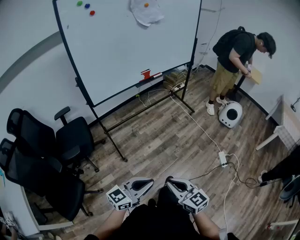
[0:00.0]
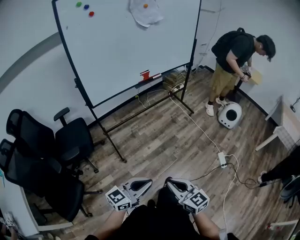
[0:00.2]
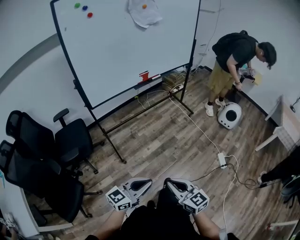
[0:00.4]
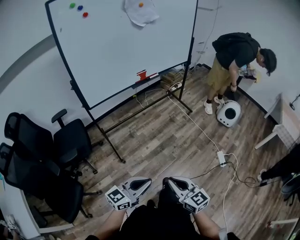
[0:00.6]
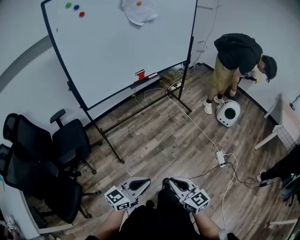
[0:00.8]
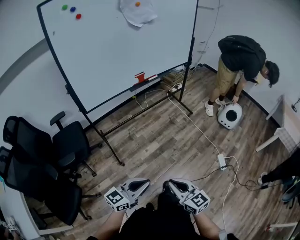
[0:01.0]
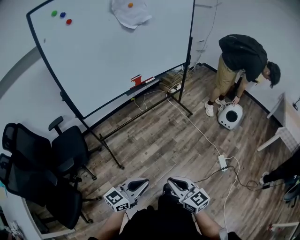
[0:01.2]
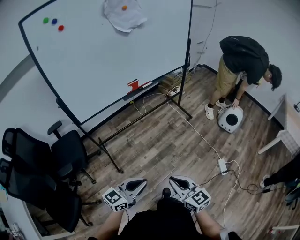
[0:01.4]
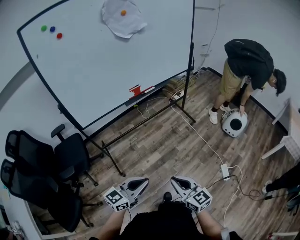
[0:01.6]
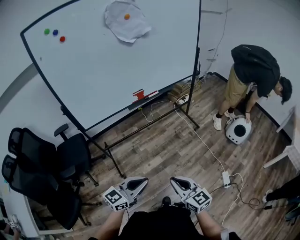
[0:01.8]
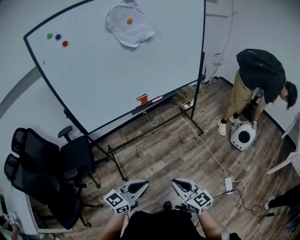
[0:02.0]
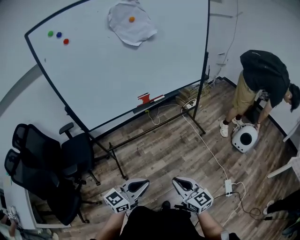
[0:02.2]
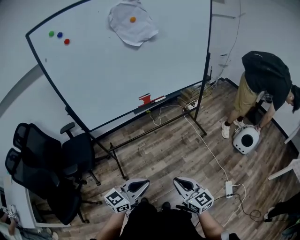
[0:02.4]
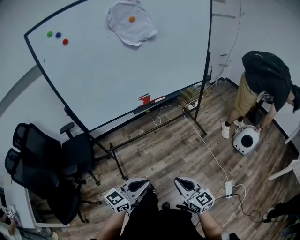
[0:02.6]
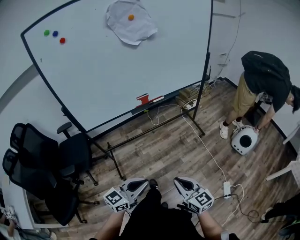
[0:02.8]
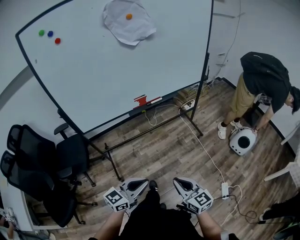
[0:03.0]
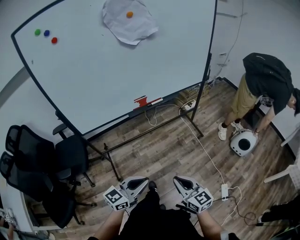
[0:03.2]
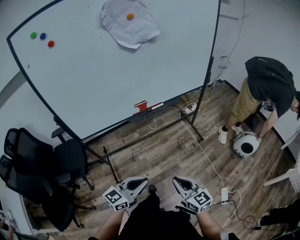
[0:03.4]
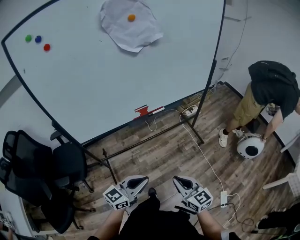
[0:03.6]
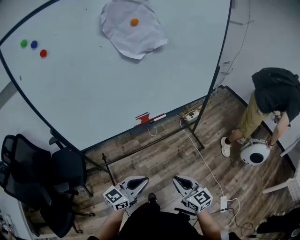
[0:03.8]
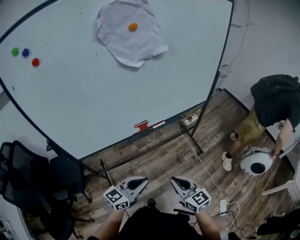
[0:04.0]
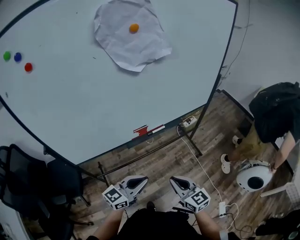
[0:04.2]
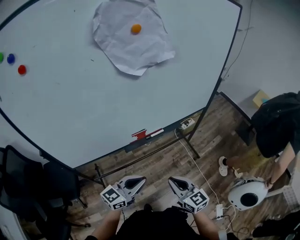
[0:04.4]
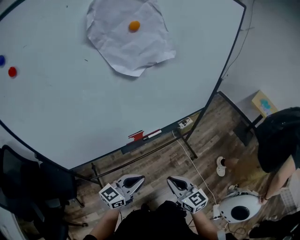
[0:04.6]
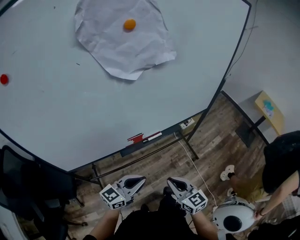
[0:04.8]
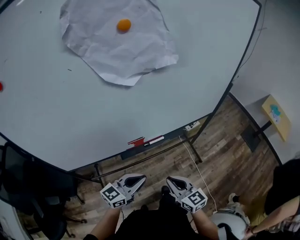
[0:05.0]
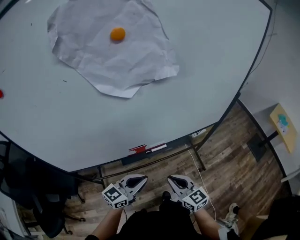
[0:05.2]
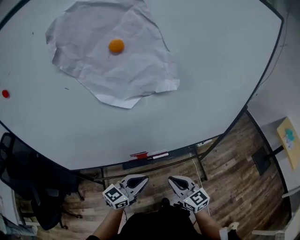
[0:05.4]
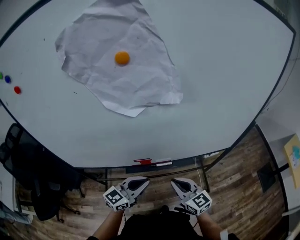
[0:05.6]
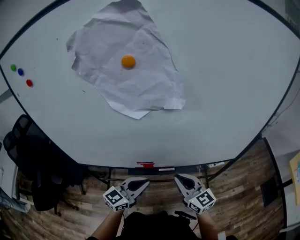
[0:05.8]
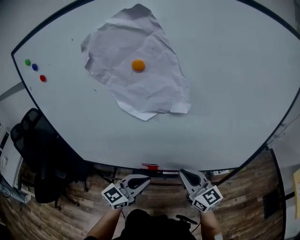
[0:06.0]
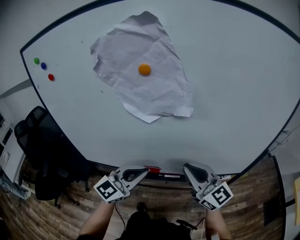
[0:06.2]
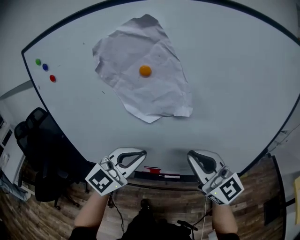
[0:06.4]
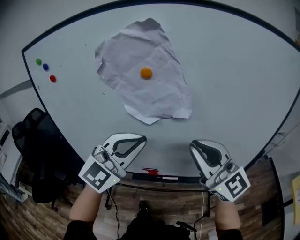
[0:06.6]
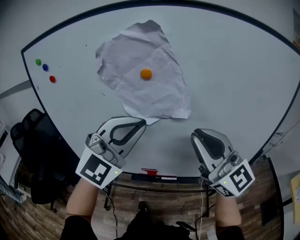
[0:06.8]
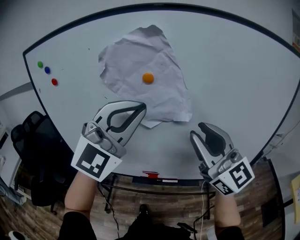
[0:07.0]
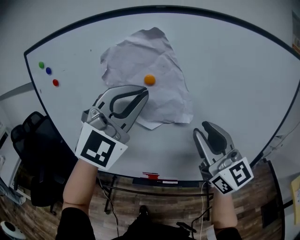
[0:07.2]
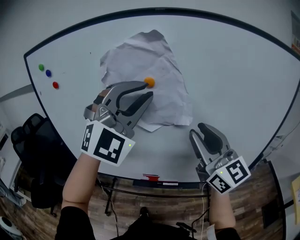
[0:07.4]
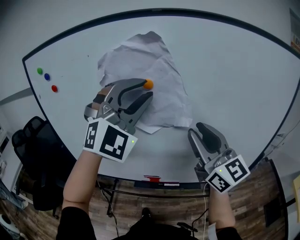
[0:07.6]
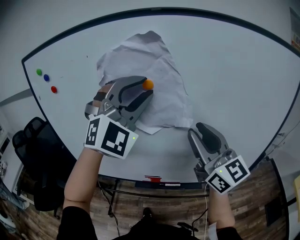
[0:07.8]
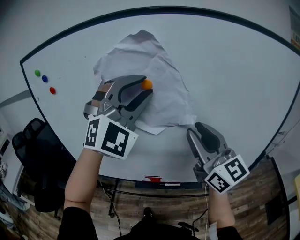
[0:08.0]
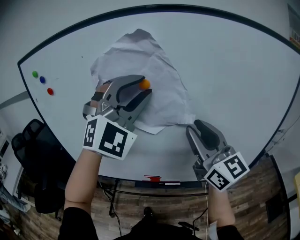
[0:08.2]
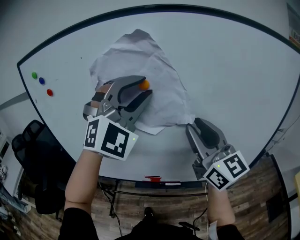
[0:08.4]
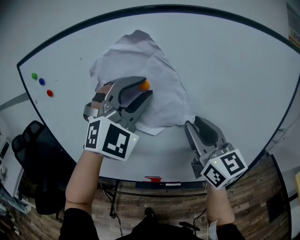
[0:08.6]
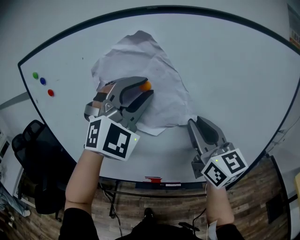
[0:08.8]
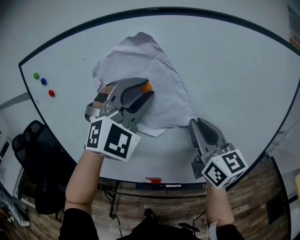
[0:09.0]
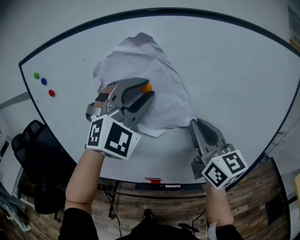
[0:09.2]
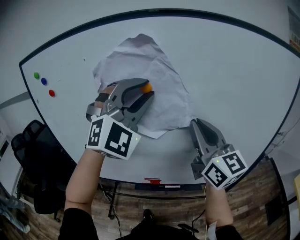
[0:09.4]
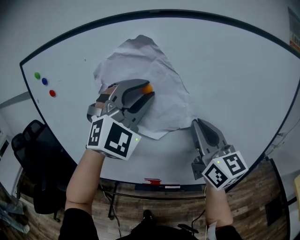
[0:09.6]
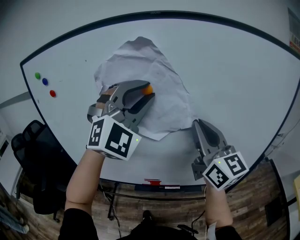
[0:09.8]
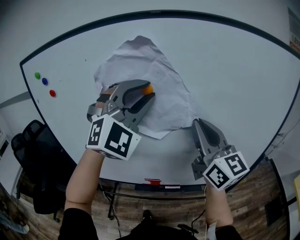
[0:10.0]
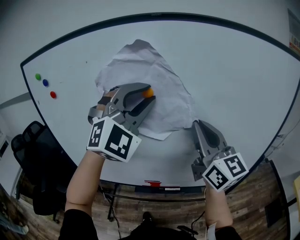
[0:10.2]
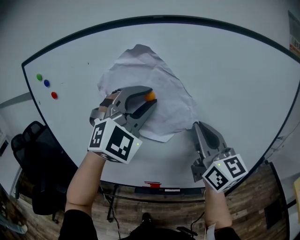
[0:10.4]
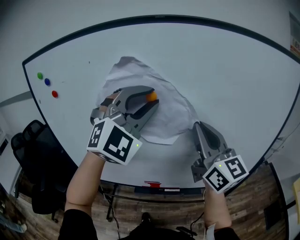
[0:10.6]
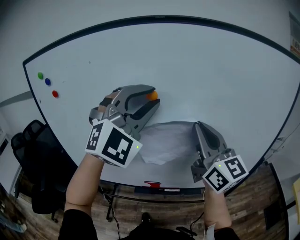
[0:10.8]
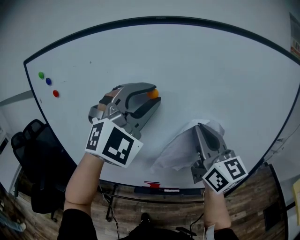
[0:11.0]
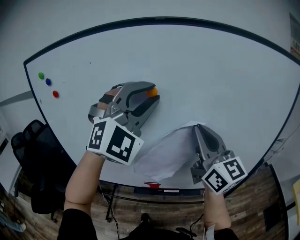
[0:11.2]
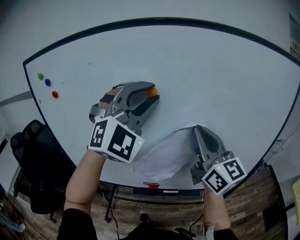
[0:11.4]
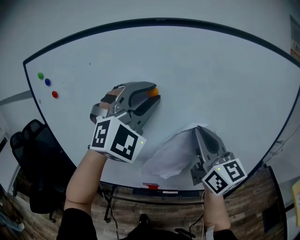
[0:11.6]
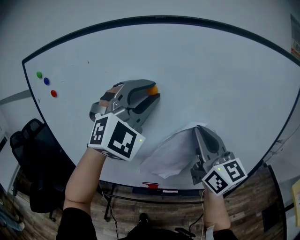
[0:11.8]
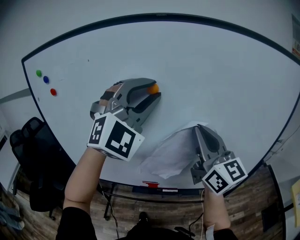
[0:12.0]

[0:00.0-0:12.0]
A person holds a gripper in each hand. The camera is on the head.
0:00.0 to 0:01.6: The right gripper shifts approximately 25 cm forward and to the right. Meanwhile the left gripper heads forward, covering about 20 cm.
0:01.6 to 0:03.0: Both grippers move forward, roughly 10 cm.
0:03.0 to 0:04.4: The grippers both shift forward by some 30 cm.
0:04.4 to 0:06.0: The left gripper ends up roughly 20 cm from where it was, and turns by some 30 degrees. Meanwhile the right gripper shifts by about 30 cm, and turns by roughly 30 degrees.
0:06.0 to 0:07.6: Both grippers move upward, some 35 cm. The left gripper twists some 70 degrees clockwise, seen from behind, and opens up. Meanwhile the right gripper opens.
0:07.6 to 0:12.0: The grippers move only a little.

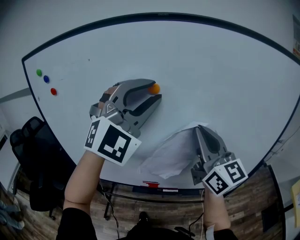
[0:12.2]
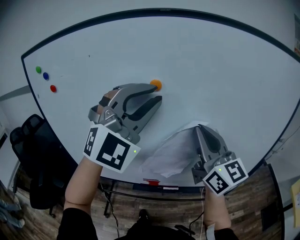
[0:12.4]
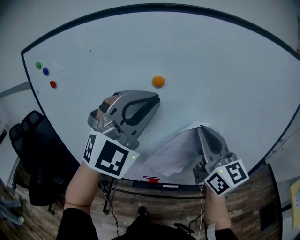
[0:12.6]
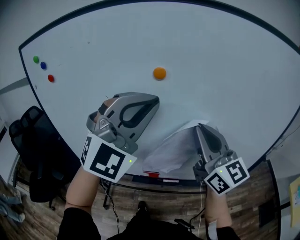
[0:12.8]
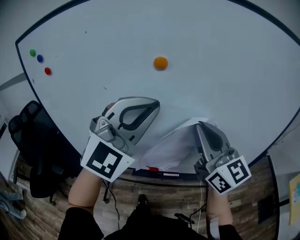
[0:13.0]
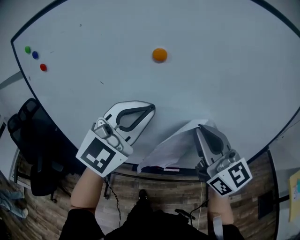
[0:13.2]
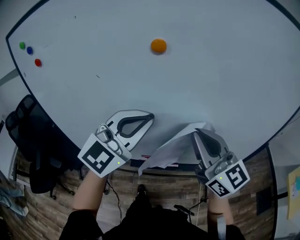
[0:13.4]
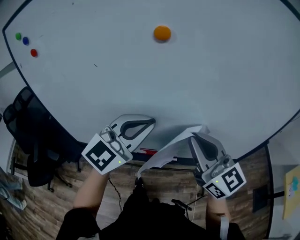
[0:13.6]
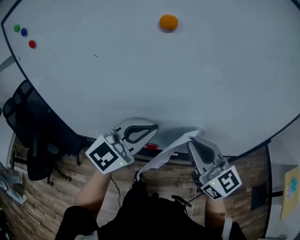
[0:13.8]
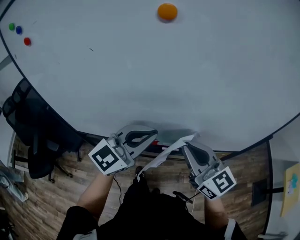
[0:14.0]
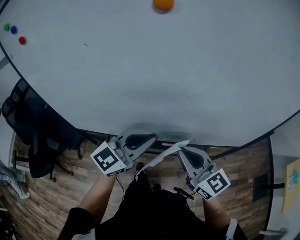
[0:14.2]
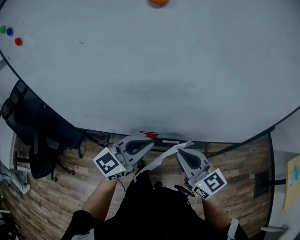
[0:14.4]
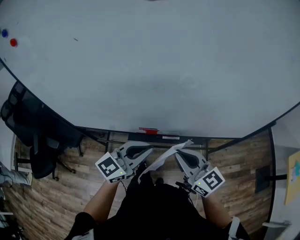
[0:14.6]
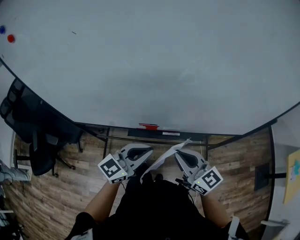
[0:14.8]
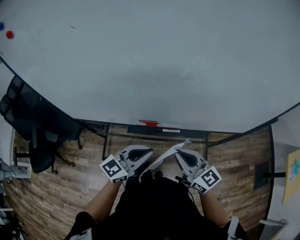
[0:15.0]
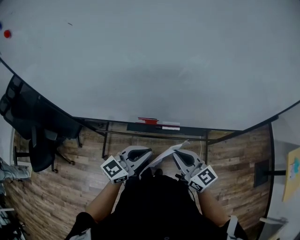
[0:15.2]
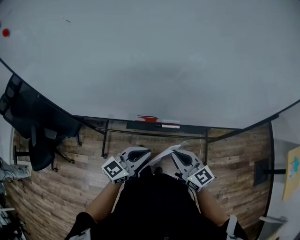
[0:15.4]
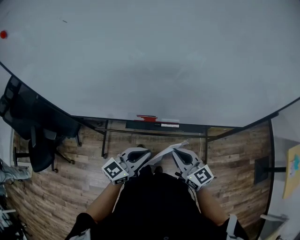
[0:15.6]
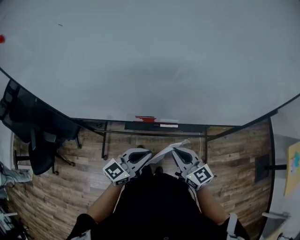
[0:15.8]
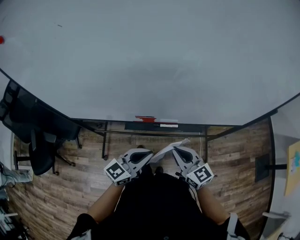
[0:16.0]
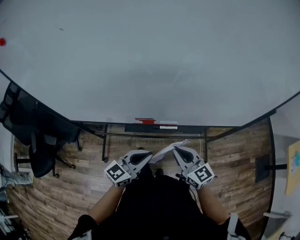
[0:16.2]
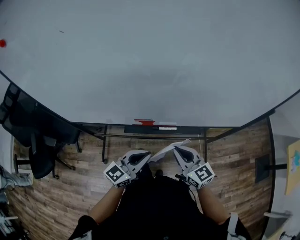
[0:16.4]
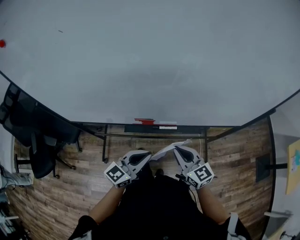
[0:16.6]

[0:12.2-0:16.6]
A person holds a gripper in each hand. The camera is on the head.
0:12.2 to 0:13.6: The right gripper shifts some 15 cm downward. The left gripper shifts about 20 cm downward, rolls counterclockwise, seen from behind, by some 40 degrees, and closes.
0:13.6 to 0:15.2: Both grippers move downward, approximately 30 cm. The right gripper turns by some 20 degrees, while the left gripper turns by roughly 40 degrees.
0:15.2 to 0:16.6: The grippers make only small movements.

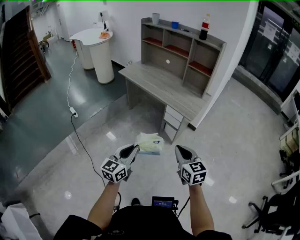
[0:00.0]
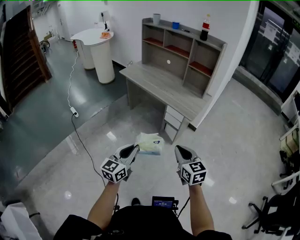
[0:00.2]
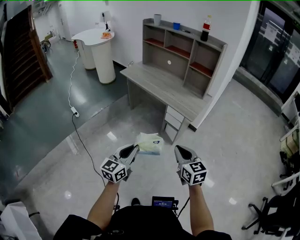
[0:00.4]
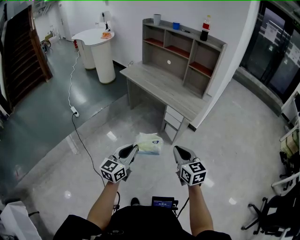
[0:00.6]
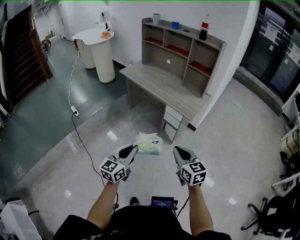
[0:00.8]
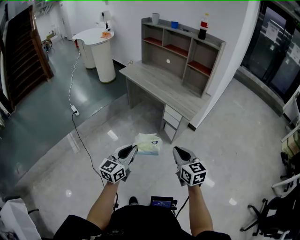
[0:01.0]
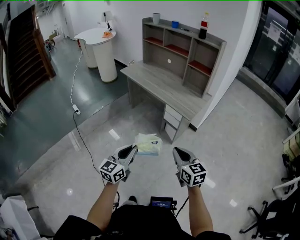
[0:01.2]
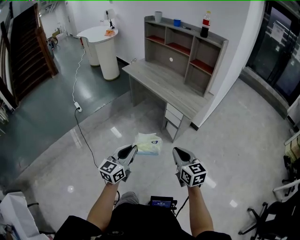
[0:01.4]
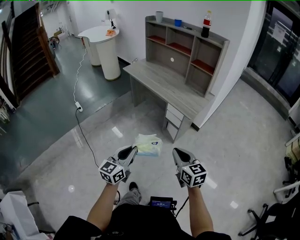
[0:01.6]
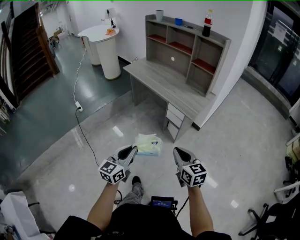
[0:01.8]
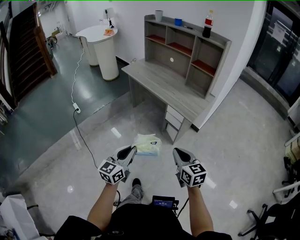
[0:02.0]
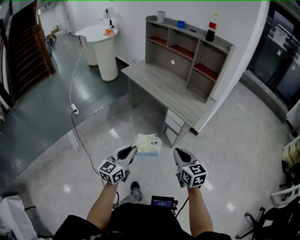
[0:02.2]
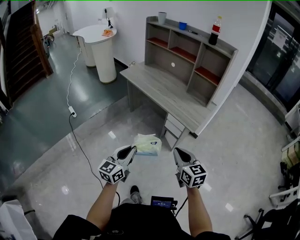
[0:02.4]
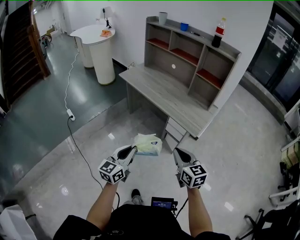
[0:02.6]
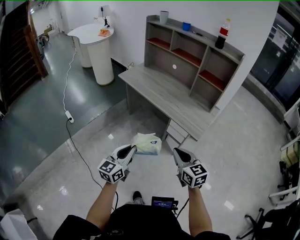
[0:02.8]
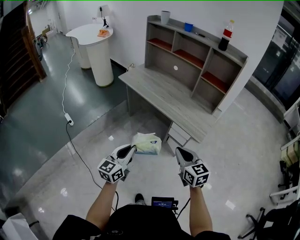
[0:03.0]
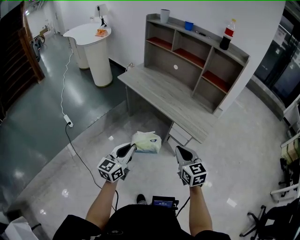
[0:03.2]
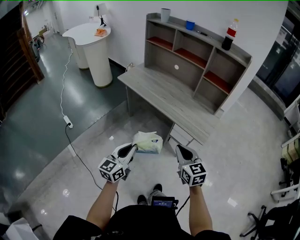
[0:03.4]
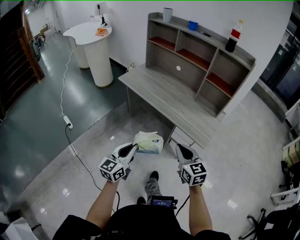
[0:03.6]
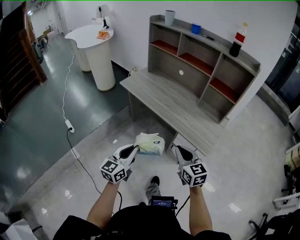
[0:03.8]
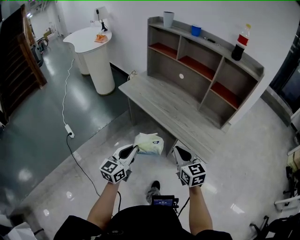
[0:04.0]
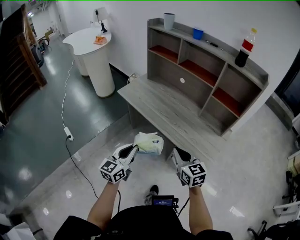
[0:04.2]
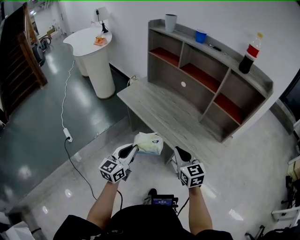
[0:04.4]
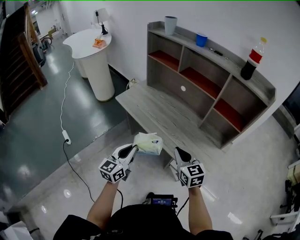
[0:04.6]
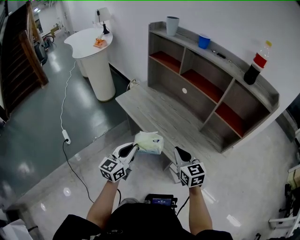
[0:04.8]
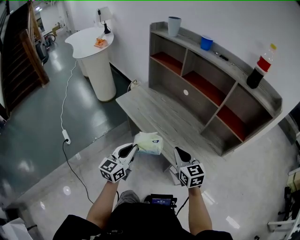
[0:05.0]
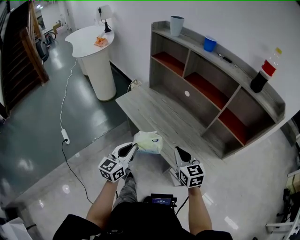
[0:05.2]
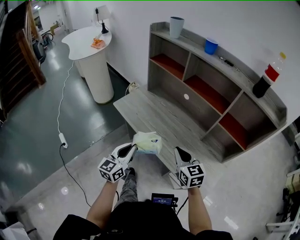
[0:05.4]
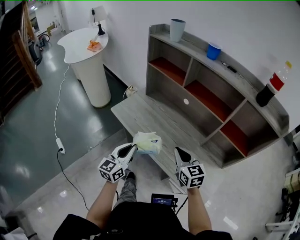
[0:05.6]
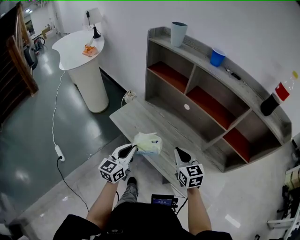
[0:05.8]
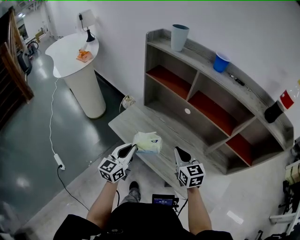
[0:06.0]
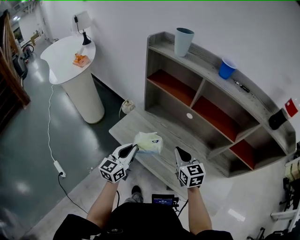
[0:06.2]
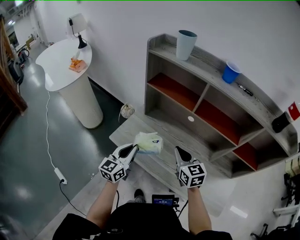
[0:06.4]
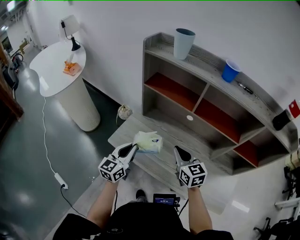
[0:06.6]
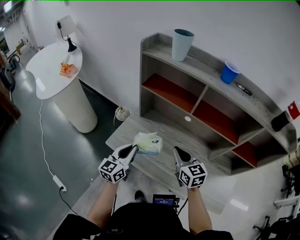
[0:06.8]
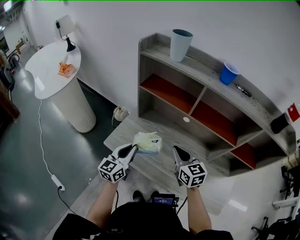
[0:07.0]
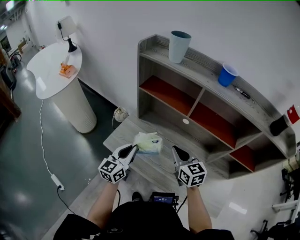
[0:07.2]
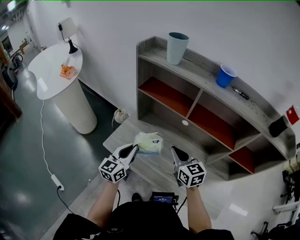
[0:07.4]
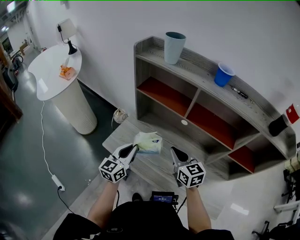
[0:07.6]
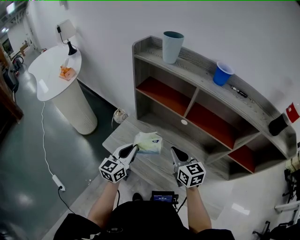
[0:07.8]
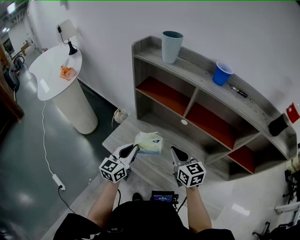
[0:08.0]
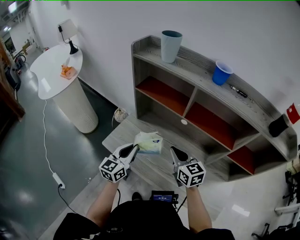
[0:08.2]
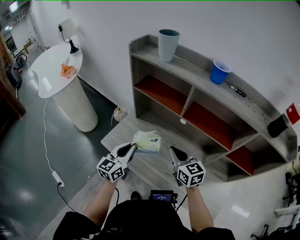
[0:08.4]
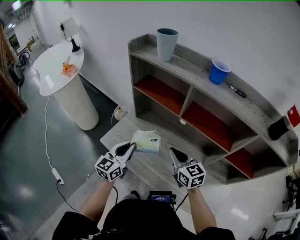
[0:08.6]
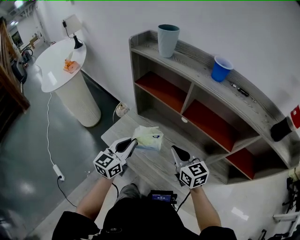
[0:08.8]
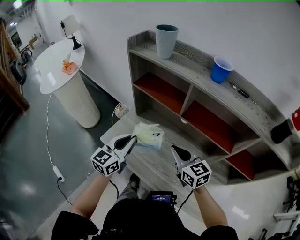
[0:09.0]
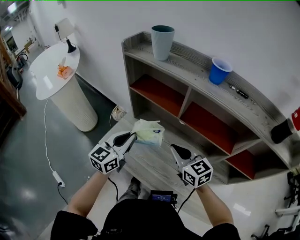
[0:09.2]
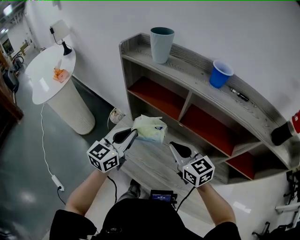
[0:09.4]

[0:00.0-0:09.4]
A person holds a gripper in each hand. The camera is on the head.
0:00.0 to 0:01.6: The right gripper changes place by some 5 cm; the left gripper moves some 5 cm.
0:01.6 to 0:03.2: Both grippers move forward and to the left, roughly 30 cm.
0:03.2 to 0:04.8: Both grippers move forward, approximately 30 cm.
0:04.8 to 0:06.2: Both grippers travel together forward, about 30 cm.
0:06.2 to 0:07.8: Both grippers move forward, roughly 5 cm.
0:07.8 to 0:09.4: The right gripper is displaced upward by some 5 cm. Meanwhile the left gripper shifts some 10 cm upward and forward.
